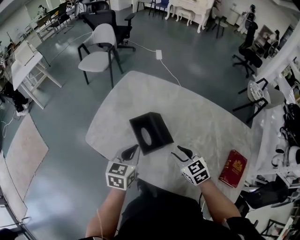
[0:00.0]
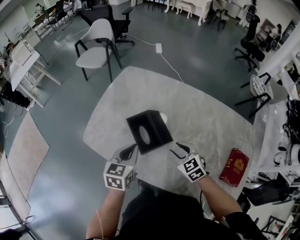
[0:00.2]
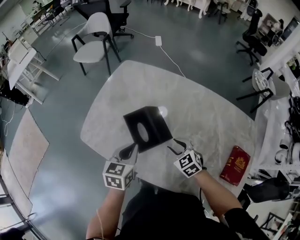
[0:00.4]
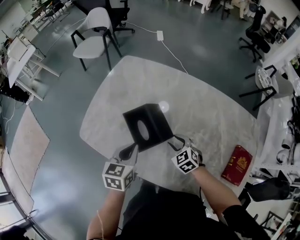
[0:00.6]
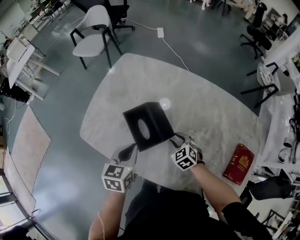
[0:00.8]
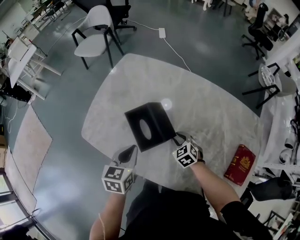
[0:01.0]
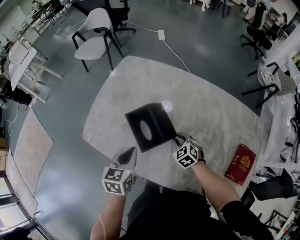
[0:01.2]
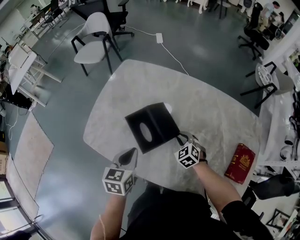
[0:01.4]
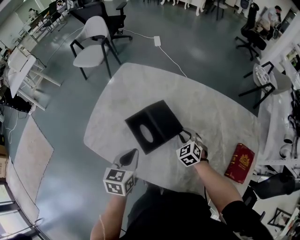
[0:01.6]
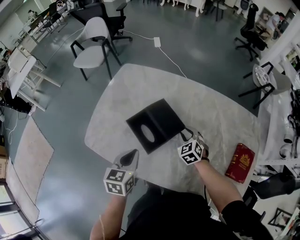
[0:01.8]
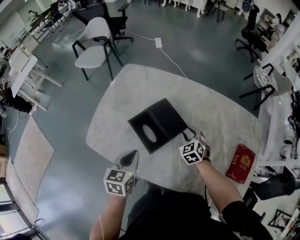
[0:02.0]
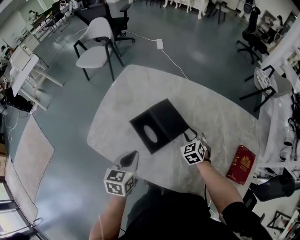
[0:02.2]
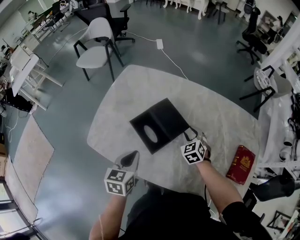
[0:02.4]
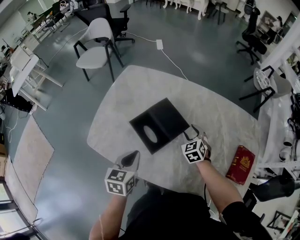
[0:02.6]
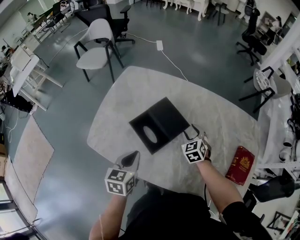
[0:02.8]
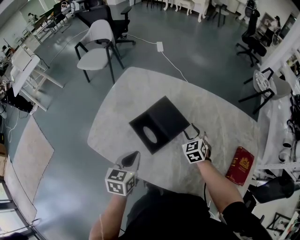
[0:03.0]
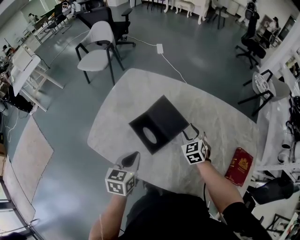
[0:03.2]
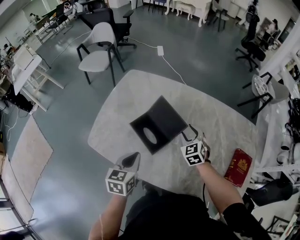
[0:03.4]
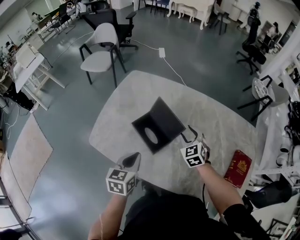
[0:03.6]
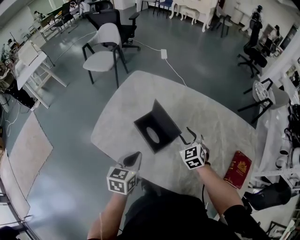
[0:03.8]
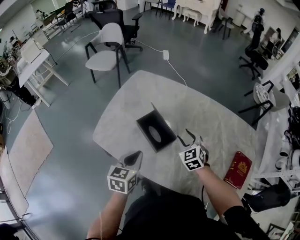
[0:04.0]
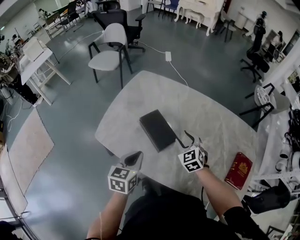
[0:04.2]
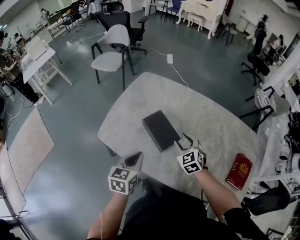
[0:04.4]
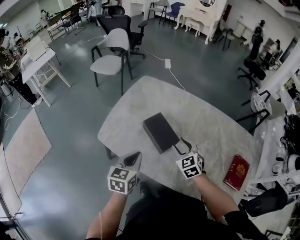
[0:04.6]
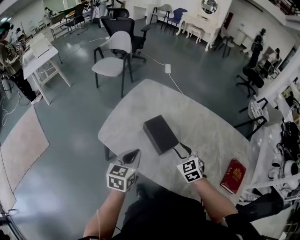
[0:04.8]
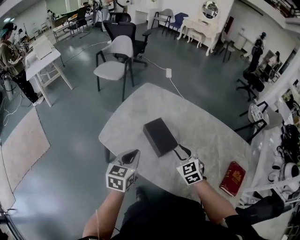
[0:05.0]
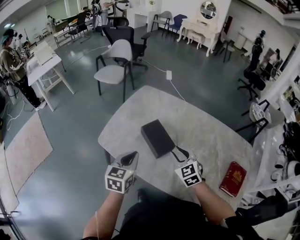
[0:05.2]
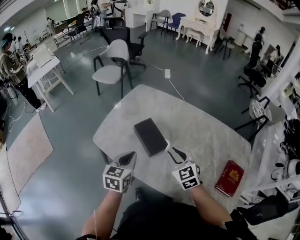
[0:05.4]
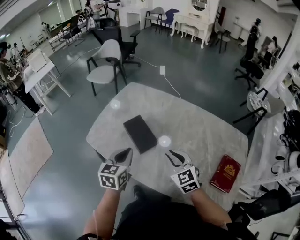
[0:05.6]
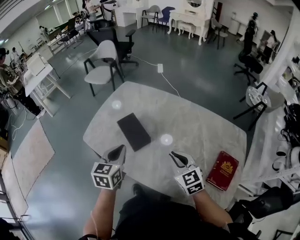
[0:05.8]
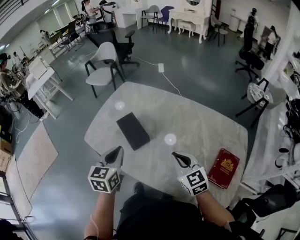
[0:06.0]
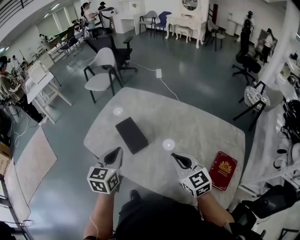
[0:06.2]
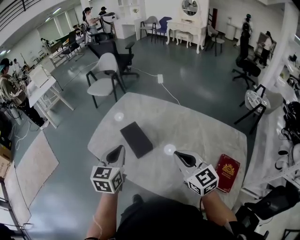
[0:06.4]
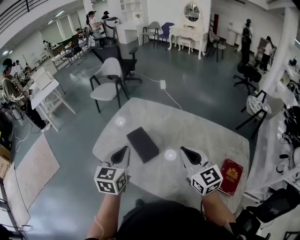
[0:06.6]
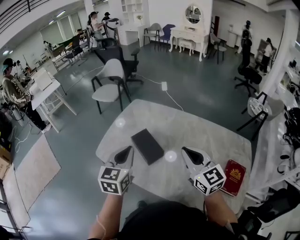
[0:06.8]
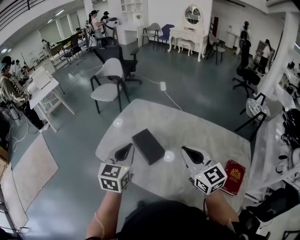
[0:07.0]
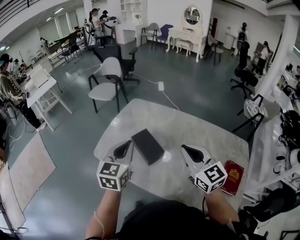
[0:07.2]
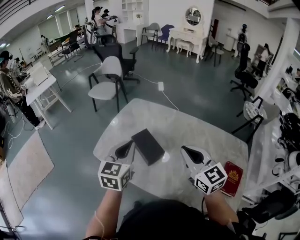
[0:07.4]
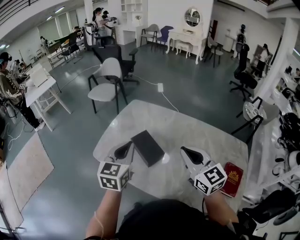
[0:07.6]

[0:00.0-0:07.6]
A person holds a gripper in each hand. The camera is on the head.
0:00.0 to 0:01.6: The right gripper heads downward, forward and to the right, covering some 15 cm, and swivels some 20 degrees.
0:01.6 to 0:03.0: The right gripper changes place by some 5 cm, and opens.
0:03.0 to 0:04.6: The right gripper shifts about 20 cm to the left, backward and upward. The left gripper is displaced backward and to the left by roughly 10 cm.
0:04.6 to 0:06.0: The left gripper goes roughly 15 cm to the right and upward, while the right gripper heads to the right, backward and upward, covering some 25 cm, turns by roughly 20 degrees, and closes up.
0:06.0 to 0:07.6: The left gripper is displaced upward, to the left and forward by about 15 cm; the right gripper moves upward and to the left, roughly 15 cm.

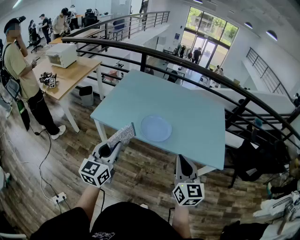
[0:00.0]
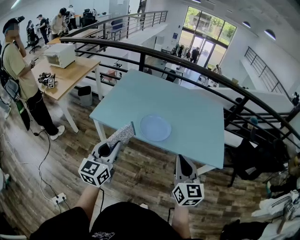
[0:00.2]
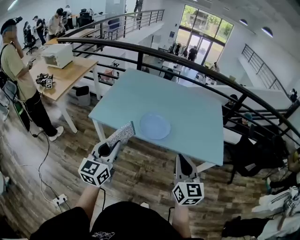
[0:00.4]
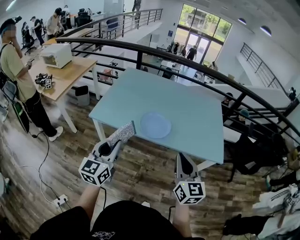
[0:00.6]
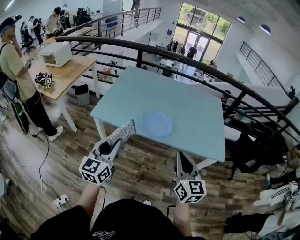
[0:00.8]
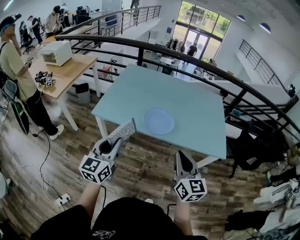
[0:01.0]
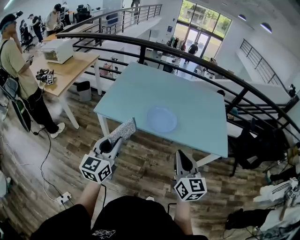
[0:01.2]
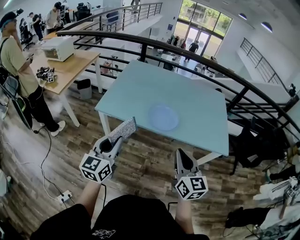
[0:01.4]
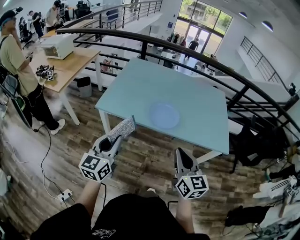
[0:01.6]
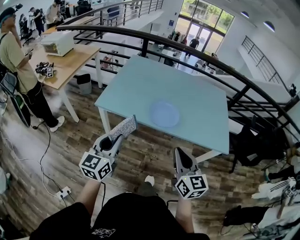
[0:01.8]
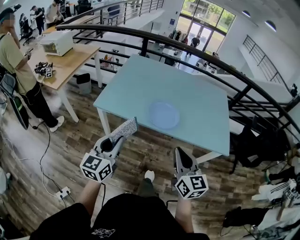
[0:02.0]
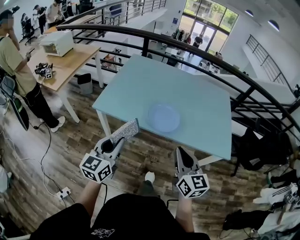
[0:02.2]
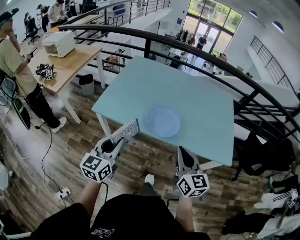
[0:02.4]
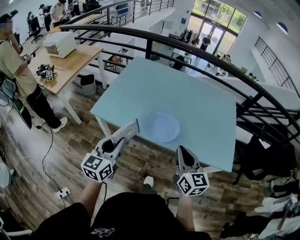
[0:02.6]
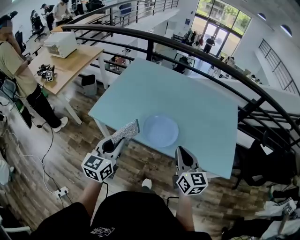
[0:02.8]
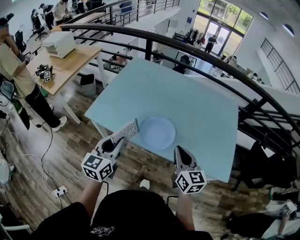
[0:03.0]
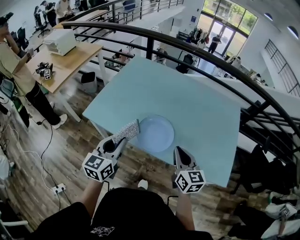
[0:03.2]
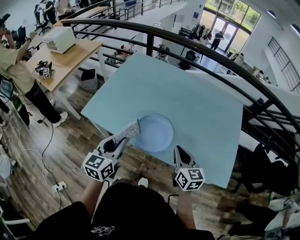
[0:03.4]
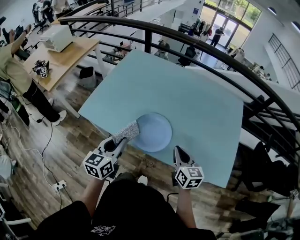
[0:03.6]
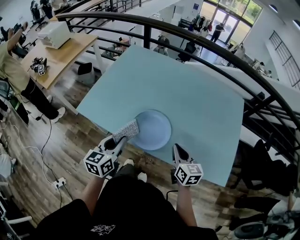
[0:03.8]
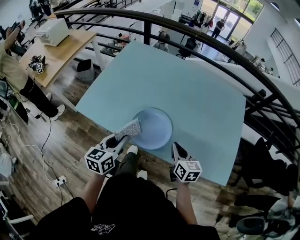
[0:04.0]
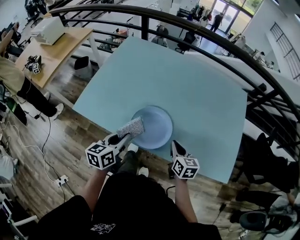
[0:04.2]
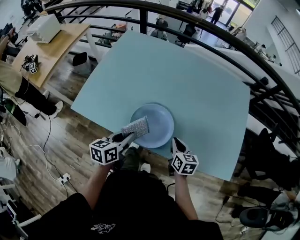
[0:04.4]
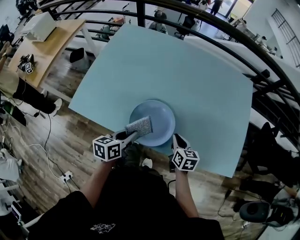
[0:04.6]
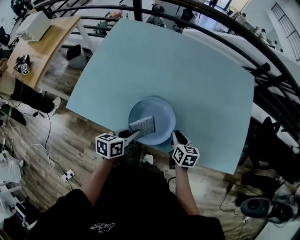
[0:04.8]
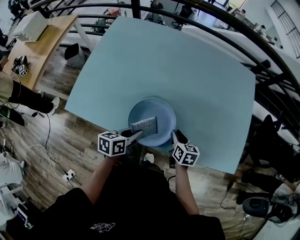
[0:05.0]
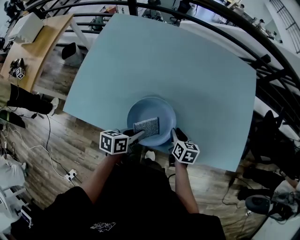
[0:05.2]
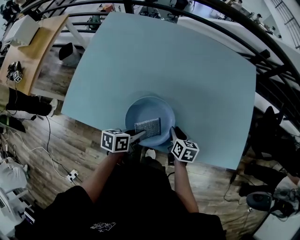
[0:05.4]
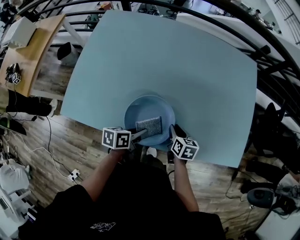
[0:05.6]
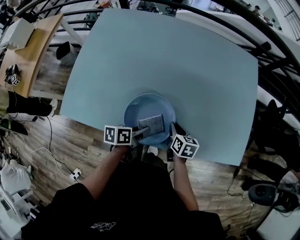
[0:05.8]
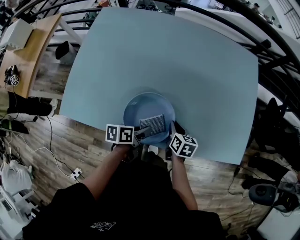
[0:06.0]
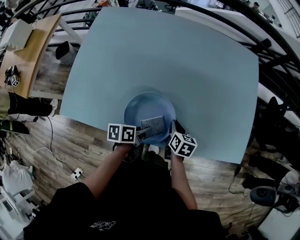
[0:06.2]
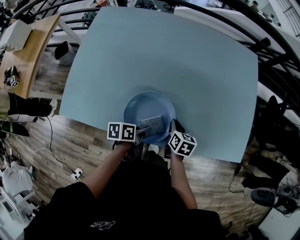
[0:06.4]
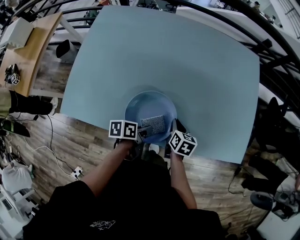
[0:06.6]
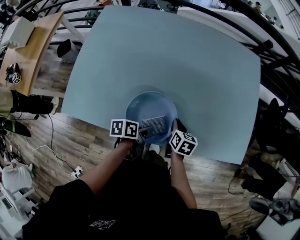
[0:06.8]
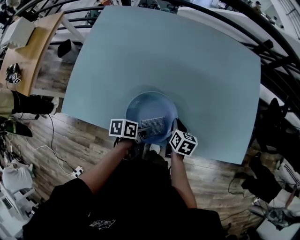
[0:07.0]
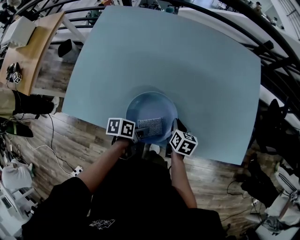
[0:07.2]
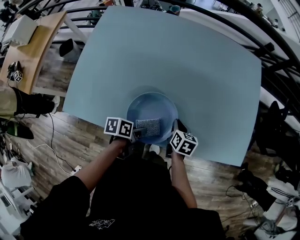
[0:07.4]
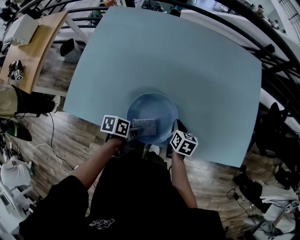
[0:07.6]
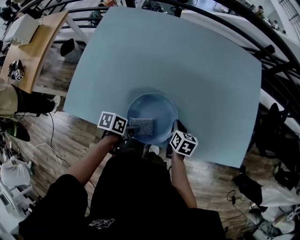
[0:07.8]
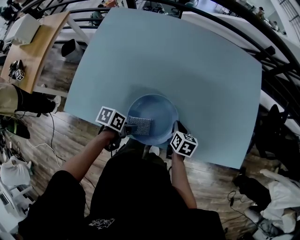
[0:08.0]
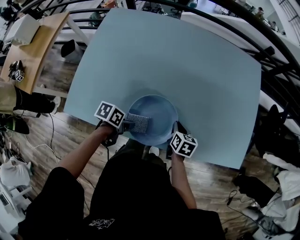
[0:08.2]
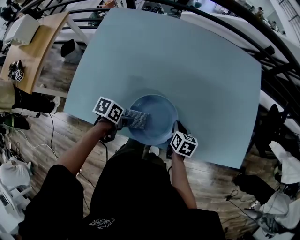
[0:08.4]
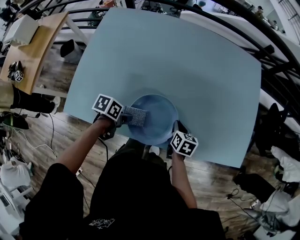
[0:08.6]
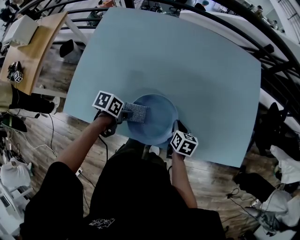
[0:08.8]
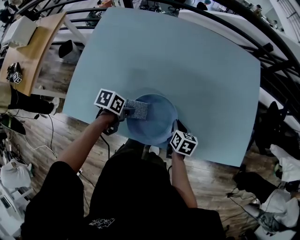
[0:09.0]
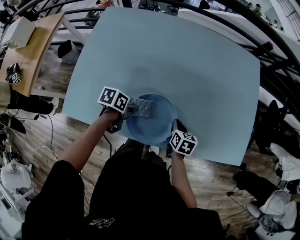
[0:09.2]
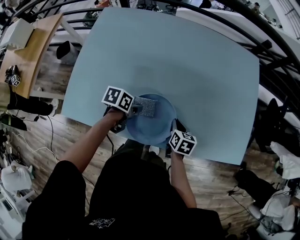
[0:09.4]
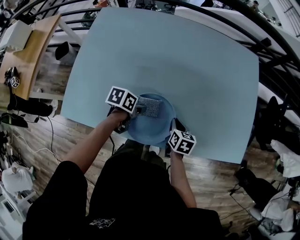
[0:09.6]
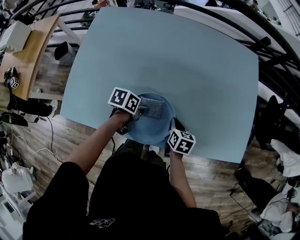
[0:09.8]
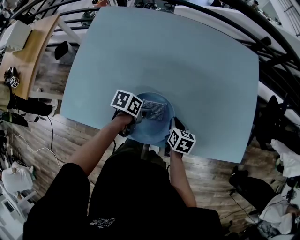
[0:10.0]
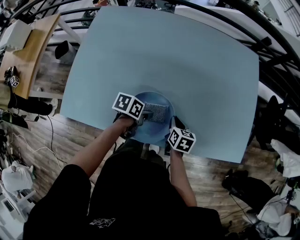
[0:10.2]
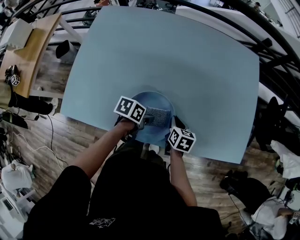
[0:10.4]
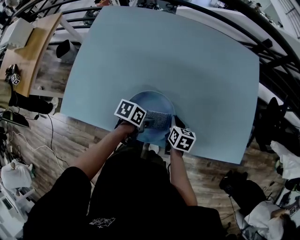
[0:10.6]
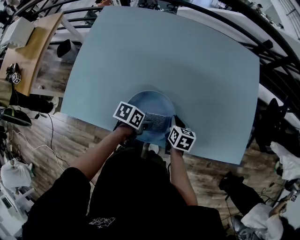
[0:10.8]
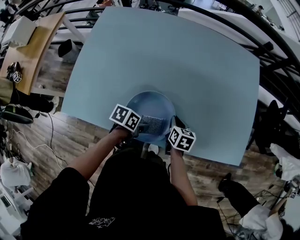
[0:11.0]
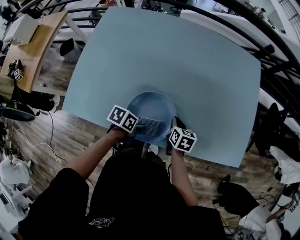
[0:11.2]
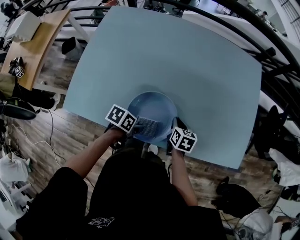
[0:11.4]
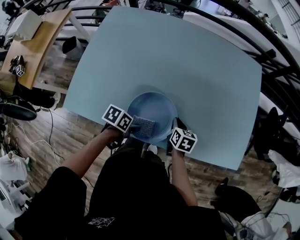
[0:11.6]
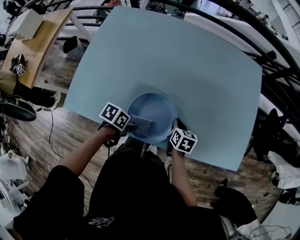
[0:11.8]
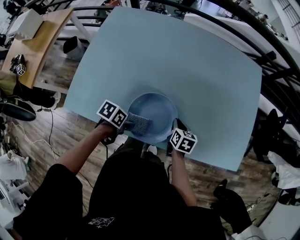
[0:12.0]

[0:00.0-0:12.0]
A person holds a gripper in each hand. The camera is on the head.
0:00.0 to 0:01.6: The two grippers go about 10 cm to the left.
0:01.6 to 0:03.0: Both grippers move forward and to the right, roughly 25 cm.
0:03.0 to 0:04.4: The left gripper goes approximately 20 cm downward, forward and to the right, and swivels about 30 degrees, while the right gripper is displaced downward and forward by approximately 25 cm, and swivels approximately 30 degrees.
0:04.4 to 0:06.0: The left gripper moves downward, to the right and forward, approximately 15 cm, and changes its angle by approximately 40 degrees, while the right gripper travels downward and forward by approximately 10 cm, and changes its angle by approximately 20 degrees.
0:06.0 to 0:07.6: The left gripper changes place by roughly 5 cm.
0:07.6 to 0:09.0: The left gripper heads to the left, covering some 10 cm.
0:09.0 to 0:10.4: The left gripper moves to the right, roughly 10 cm.
0:10.4 to 0:12.0: The left gripper travels backward and to the left by approximately 10 cm.

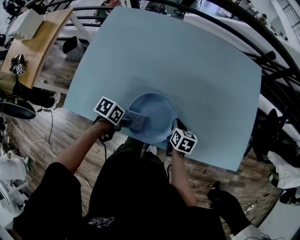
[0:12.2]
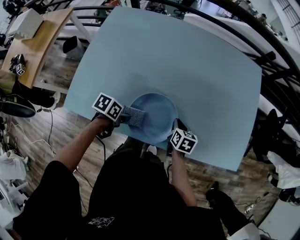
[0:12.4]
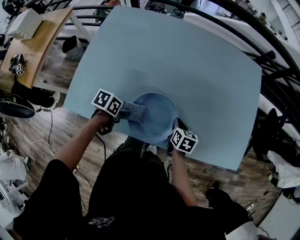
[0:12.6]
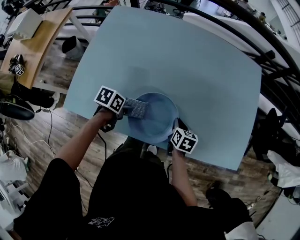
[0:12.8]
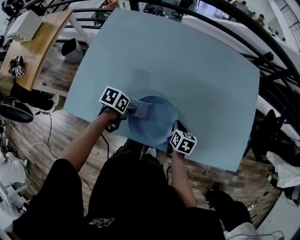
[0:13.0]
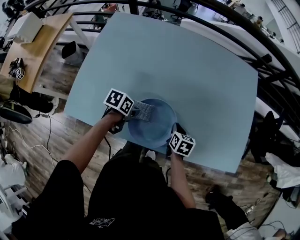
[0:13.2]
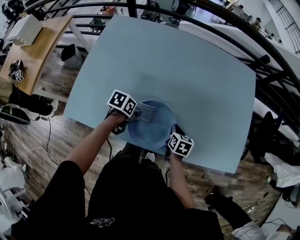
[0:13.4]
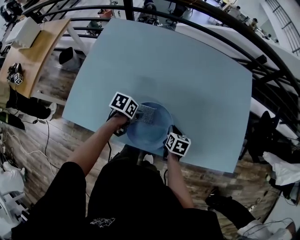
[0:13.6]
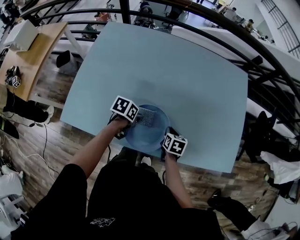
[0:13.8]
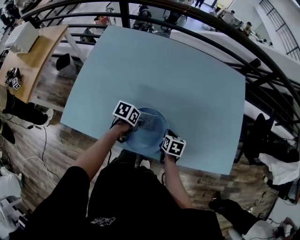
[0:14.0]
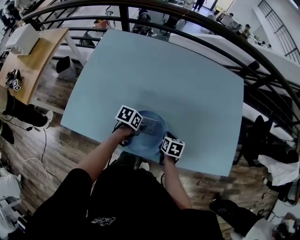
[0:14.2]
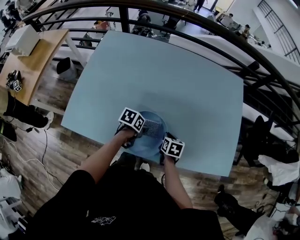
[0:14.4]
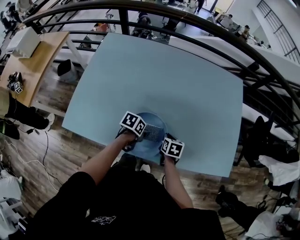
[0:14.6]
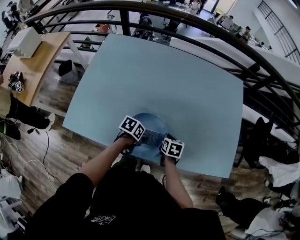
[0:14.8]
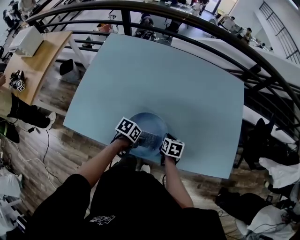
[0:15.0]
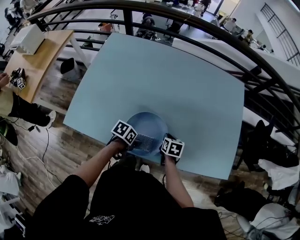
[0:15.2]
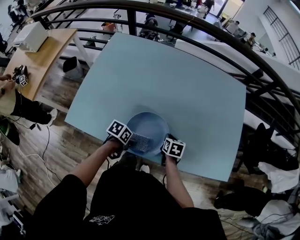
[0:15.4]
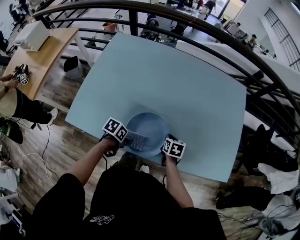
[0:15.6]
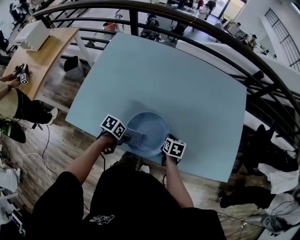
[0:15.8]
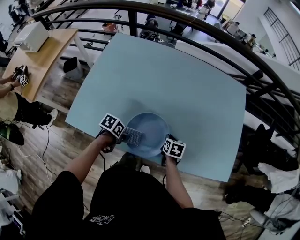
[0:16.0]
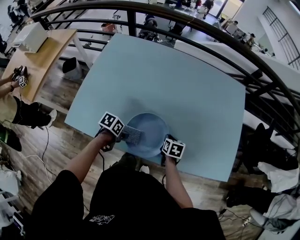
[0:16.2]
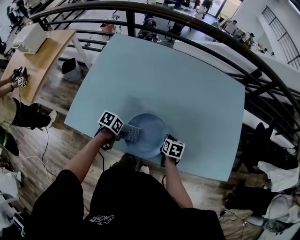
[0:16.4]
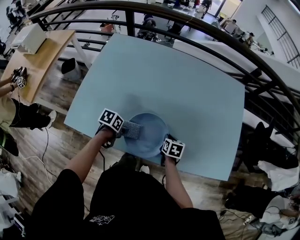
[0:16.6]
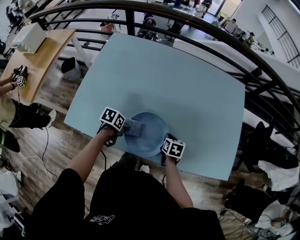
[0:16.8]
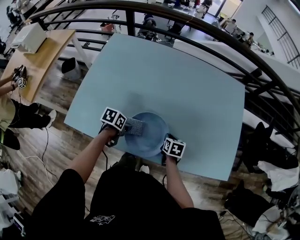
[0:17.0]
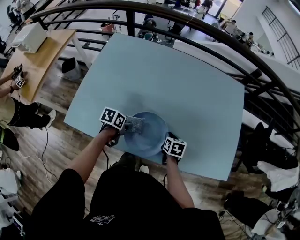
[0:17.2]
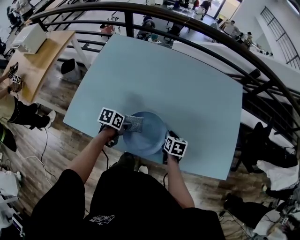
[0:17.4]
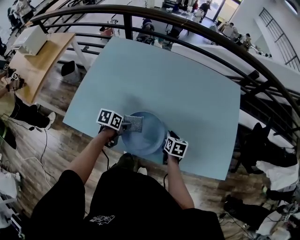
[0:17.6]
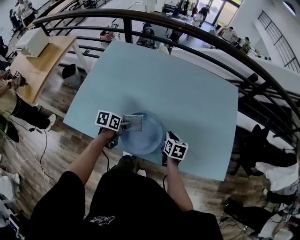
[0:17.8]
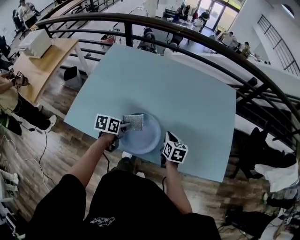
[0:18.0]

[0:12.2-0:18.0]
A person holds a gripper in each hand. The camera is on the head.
0:12.2 to 0:13.6: The left gripper heads forward, covering roughly 10 cm.
0:13.6 to 0:15.0: The left gripper travels to the right by about 10 cm.
0:15.0 to 0:16.6: The left gripper shifts some 10 cm to the left.
0:16.6 to 0:18.0: Both grippers travel together upward, roughly 10 cm. The left gripper rotates approximately 30 degrees.
